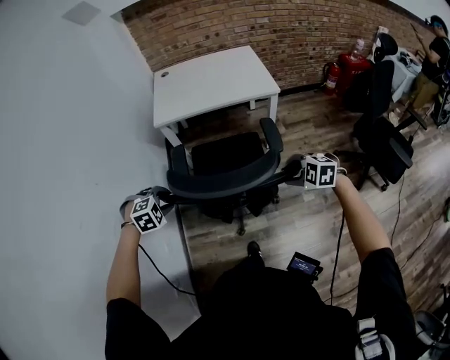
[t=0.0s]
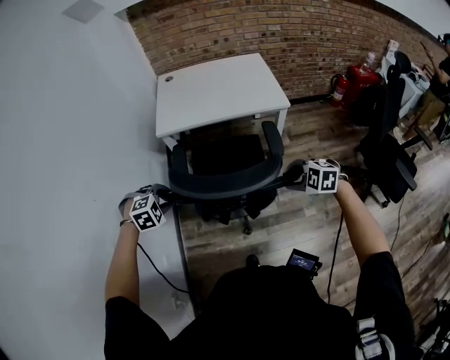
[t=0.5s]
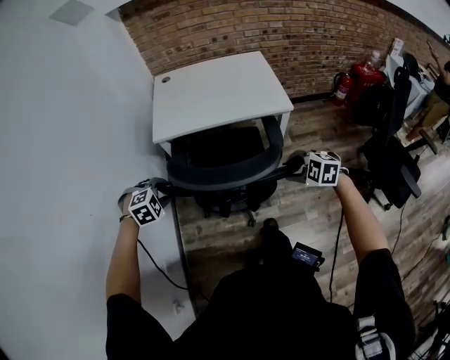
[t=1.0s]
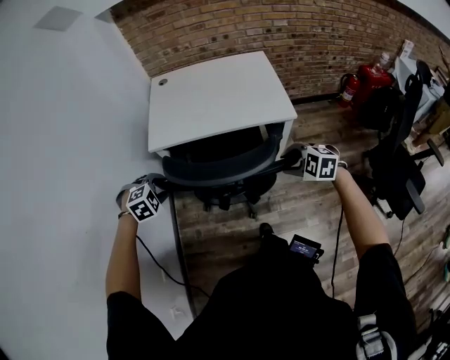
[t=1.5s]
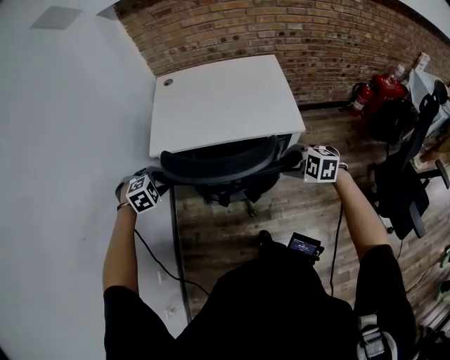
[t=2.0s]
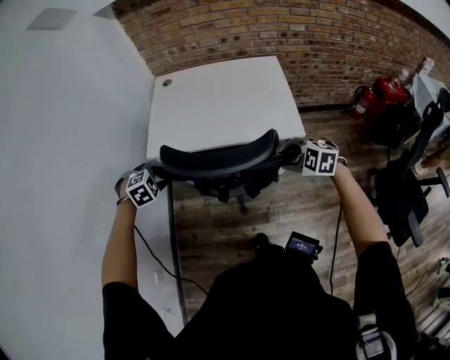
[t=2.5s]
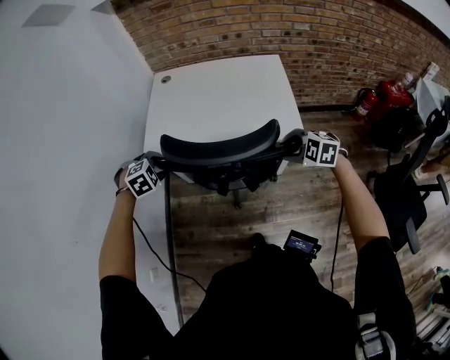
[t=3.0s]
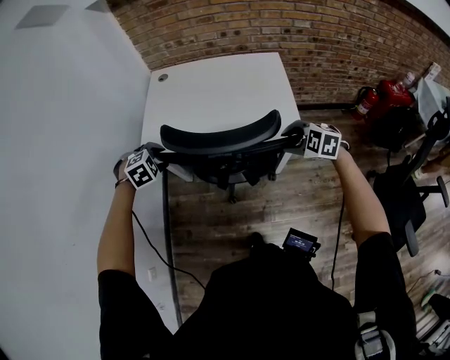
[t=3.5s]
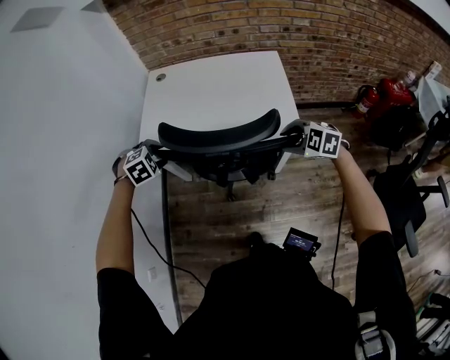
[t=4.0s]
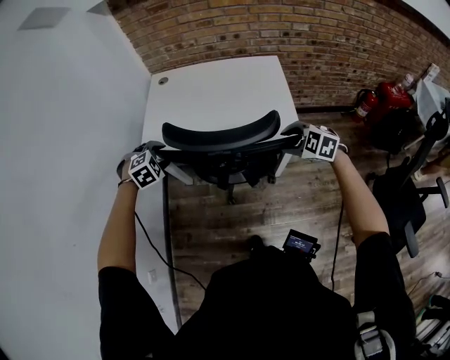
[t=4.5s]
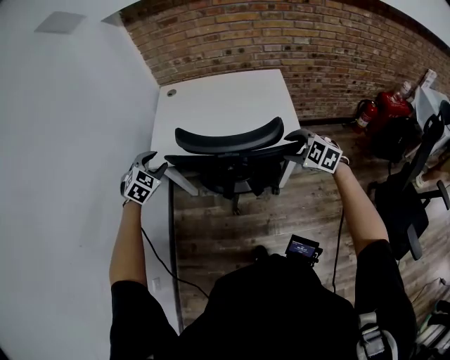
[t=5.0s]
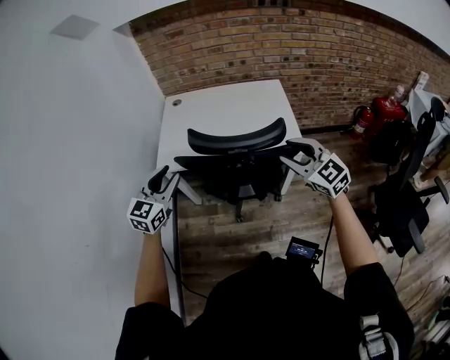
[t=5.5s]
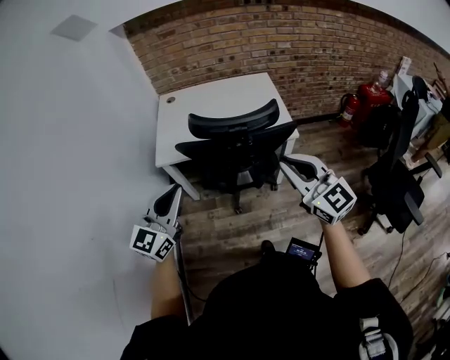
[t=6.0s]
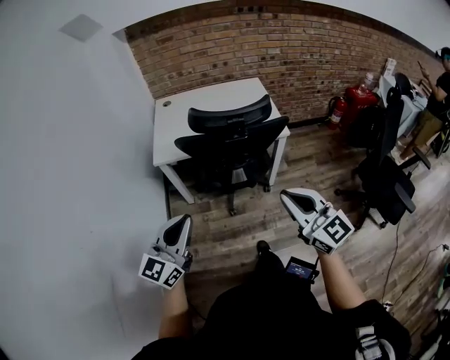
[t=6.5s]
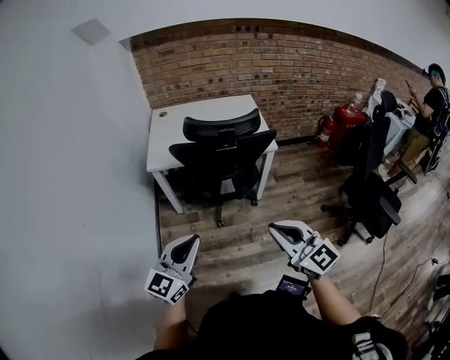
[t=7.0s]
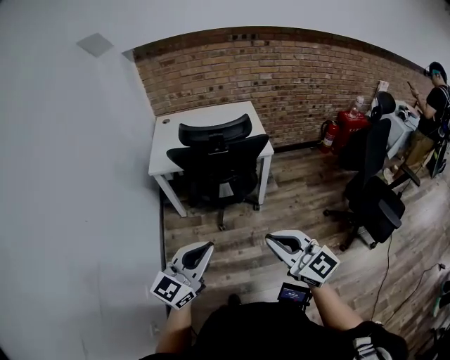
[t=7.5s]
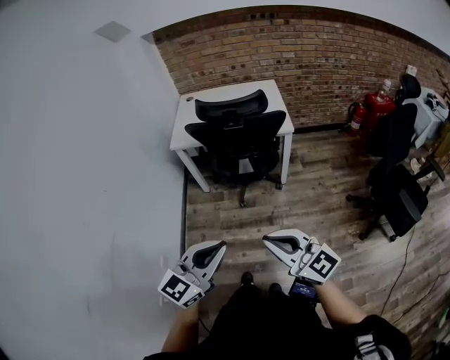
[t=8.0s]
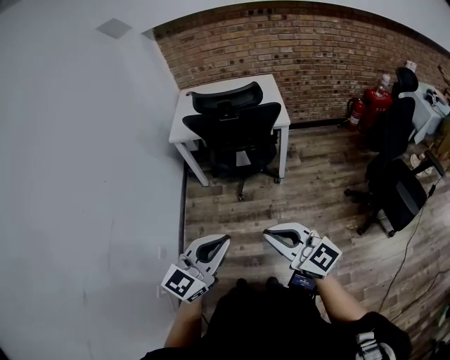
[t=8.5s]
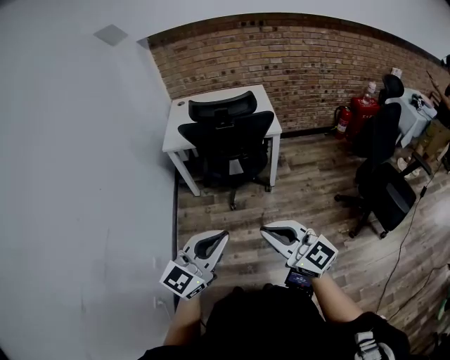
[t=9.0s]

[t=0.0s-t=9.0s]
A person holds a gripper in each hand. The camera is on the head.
t=0.0s to t=2.0s: The two grippers go approximately 35 cm forward.
t=2.0s to t=4.5s: Both grippers travel together forward and to the right, about 15 cm.
t=4.5s to t=7.0s: The two grippers travel together, backward, about 50 cm. The left gripper tips its fingers upward by roughly 70 degrees, and closes its fingers. The right gripper tilts its fingers roughly 50 degrees upward, and closes its fingers.
t=7.0s to t=9.0s: The left gripper shifts about 25 cm backward and to the right. Meanwhile the right gripper heads backward, covering approximately 15 cm.

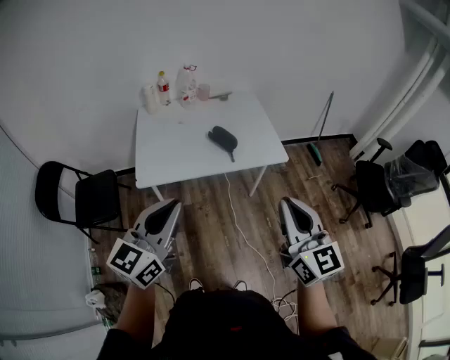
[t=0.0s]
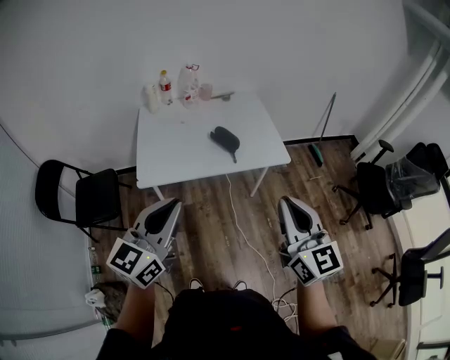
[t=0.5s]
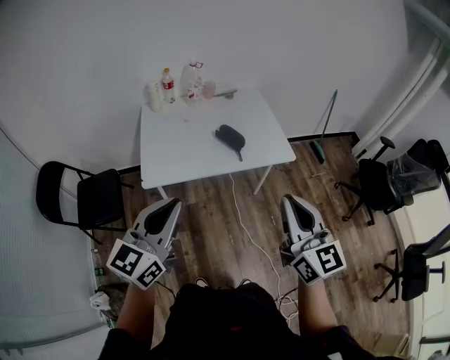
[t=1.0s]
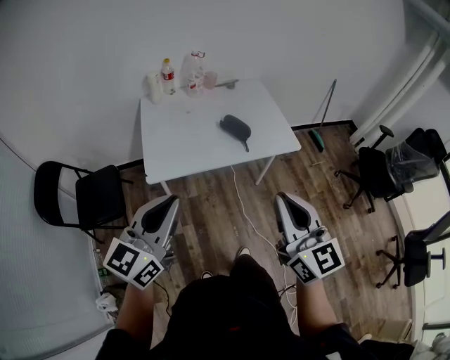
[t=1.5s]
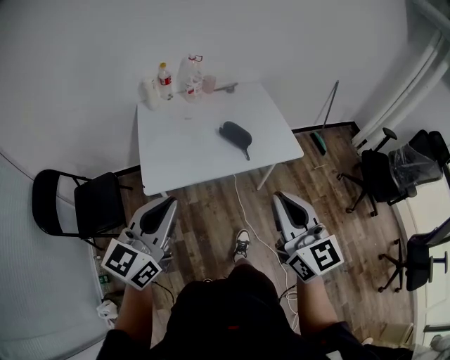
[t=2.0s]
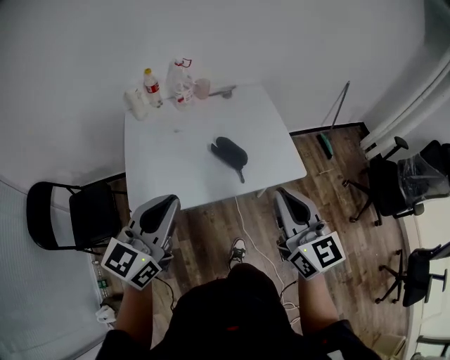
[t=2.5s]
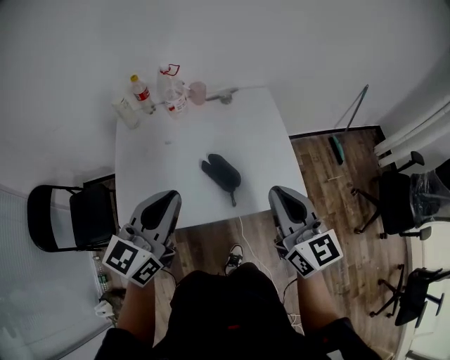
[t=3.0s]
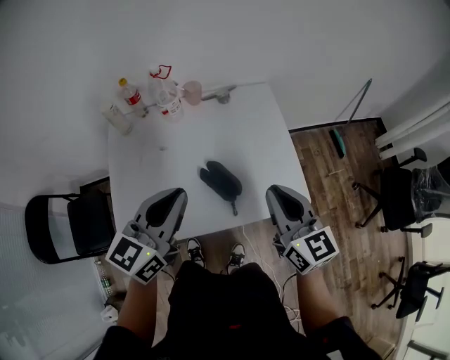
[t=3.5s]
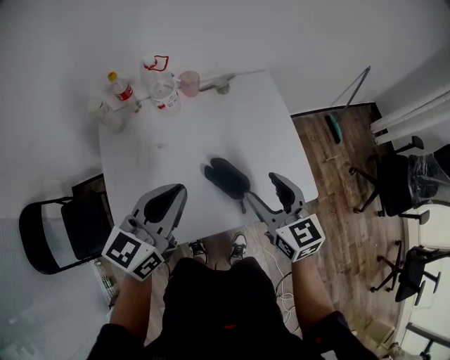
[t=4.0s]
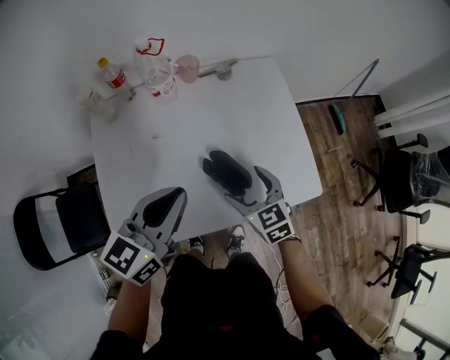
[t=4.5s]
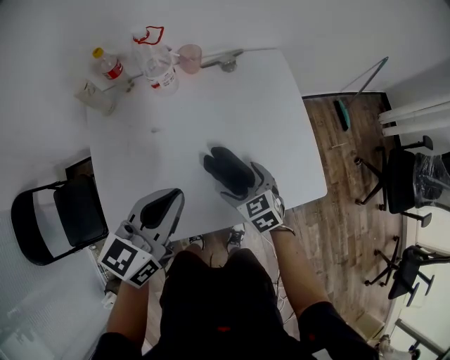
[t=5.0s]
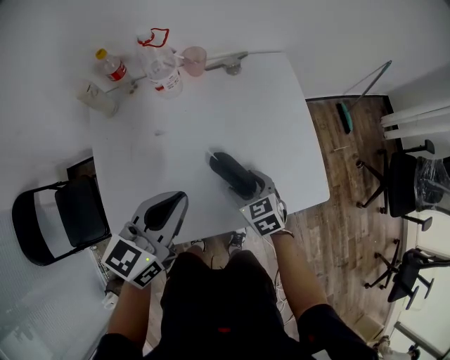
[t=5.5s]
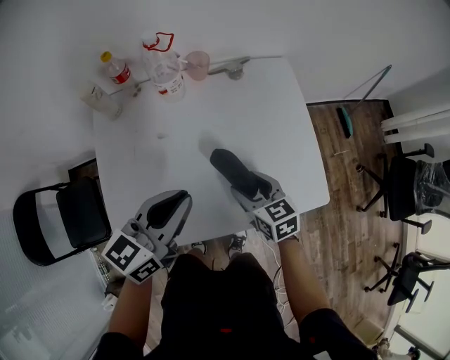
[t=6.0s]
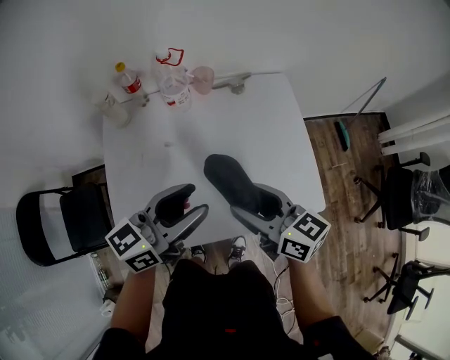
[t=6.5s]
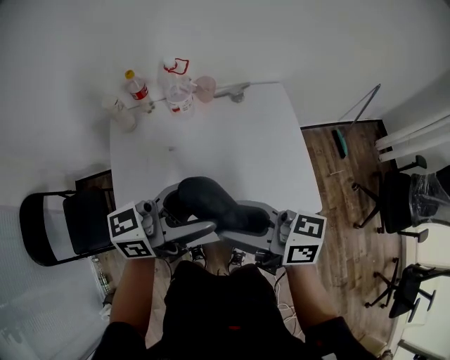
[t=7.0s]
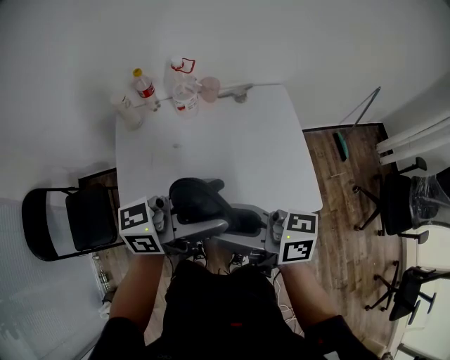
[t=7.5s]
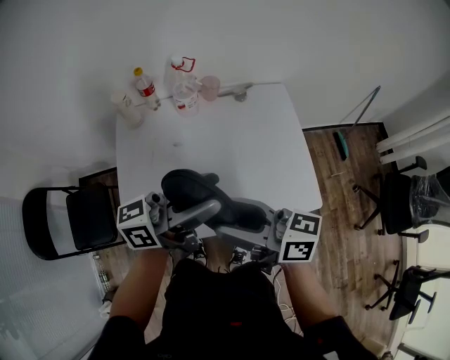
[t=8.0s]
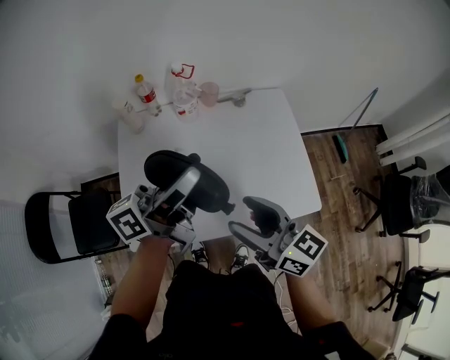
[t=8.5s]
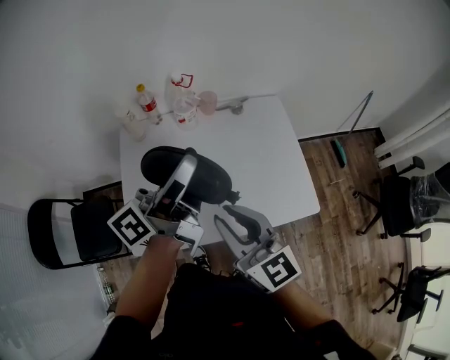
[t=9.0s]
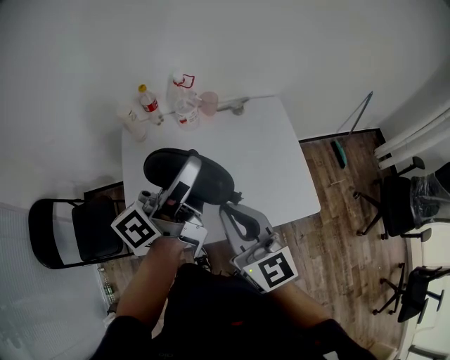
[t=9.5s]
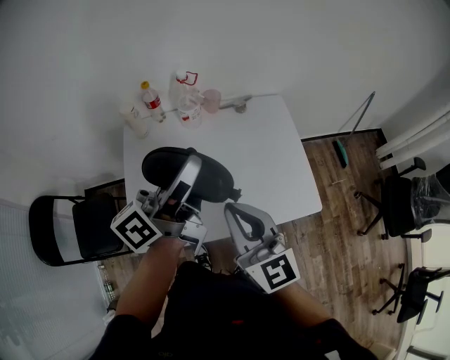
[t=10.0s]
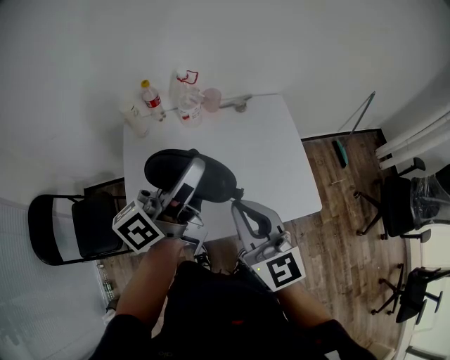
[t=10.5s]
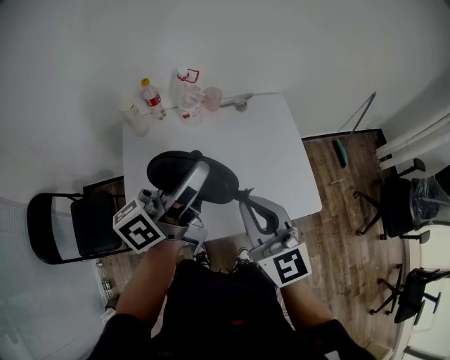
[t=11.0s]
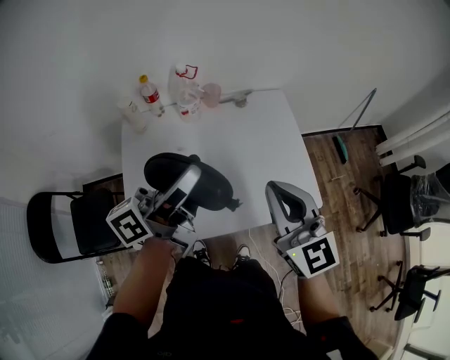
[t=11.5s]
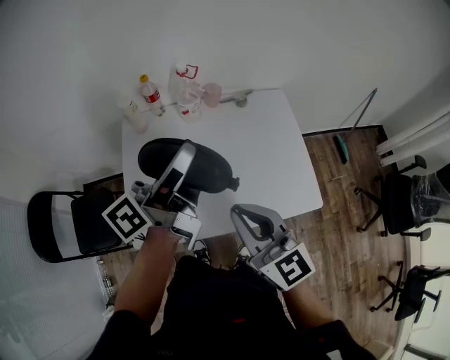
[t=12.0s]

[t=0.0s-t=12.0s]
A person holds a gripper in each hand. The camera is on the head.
t=0.0s to t=2.0s: The grippers both shift to the left and forward by roughly 15 cm.
t=2.0s to t=4.0s: Both grippers are carried forward, about 40 cm. The right gripper moves downward, some 15 cm, changes its angle by some 20 degrees, and opens up.
t=4.0s to t=6.0s: The right gripper moves downward, about 15 cm, rotates roughly 20 degrees, and opens, then closes again. The left gripper goes some 5 cm downward.
t=6.0s to t=8.0s: The right gripper shifts about 25 cm upward, and points its fingers some 40 degrees further upward, while the left gripper moves upward, approximately 15 cm, turns by approximately 40 degrees, and opens.
t=8.0s to t=10.0s: The right gripper turns by roughly 50 degrees, and closes its fingers. The left gripper goes roughly 10 cm upward and to the left, and changes its angle by roughly 30 degrees.
t=10.0s to t=12.0s: The right gripper travels to the right and back again, some 10 cm each way.

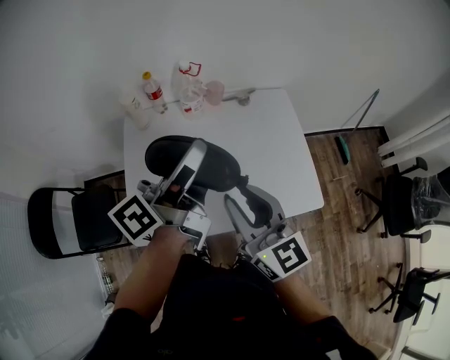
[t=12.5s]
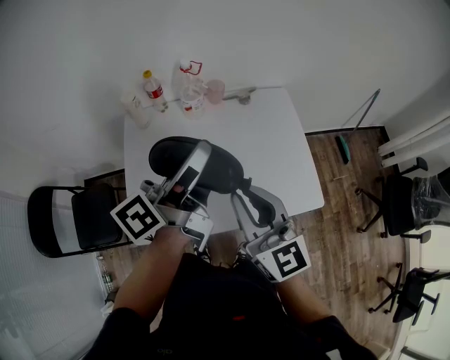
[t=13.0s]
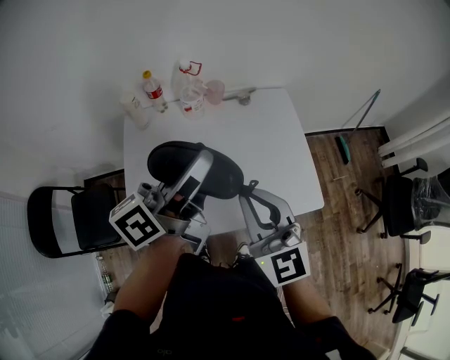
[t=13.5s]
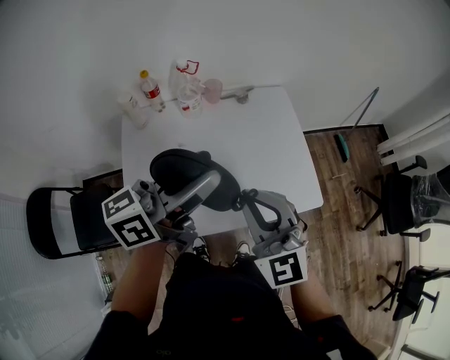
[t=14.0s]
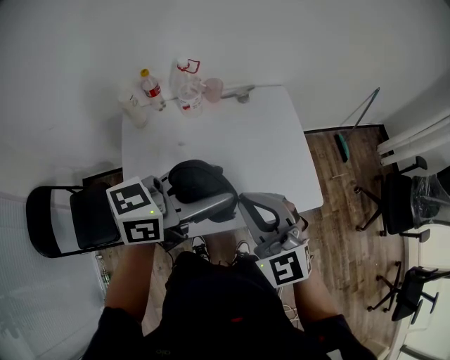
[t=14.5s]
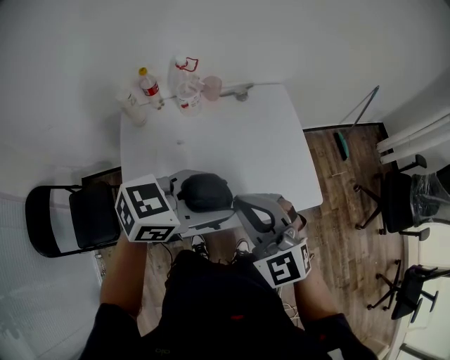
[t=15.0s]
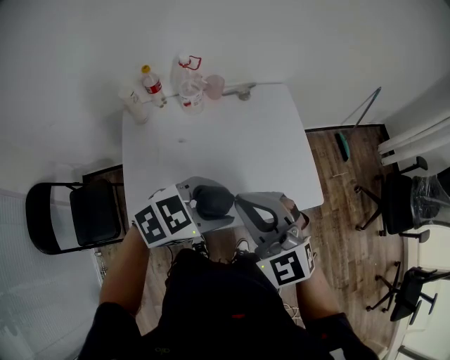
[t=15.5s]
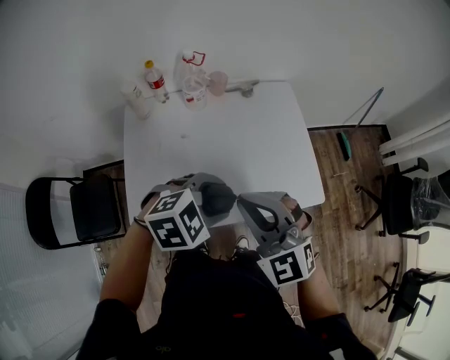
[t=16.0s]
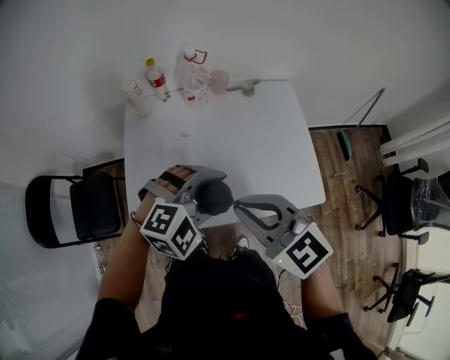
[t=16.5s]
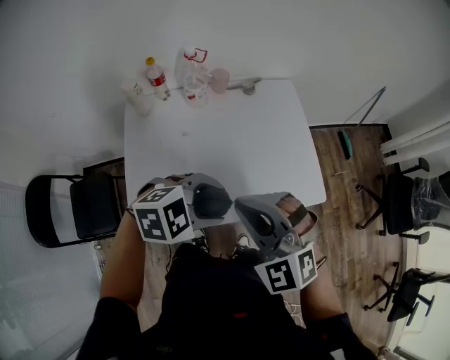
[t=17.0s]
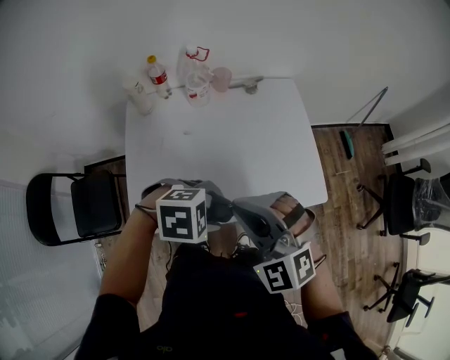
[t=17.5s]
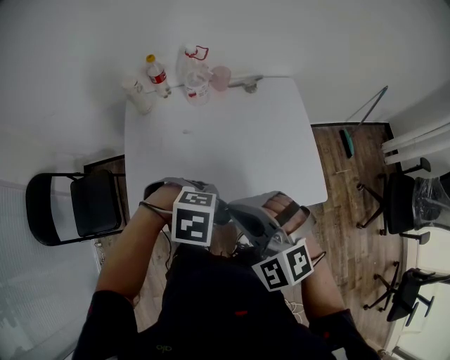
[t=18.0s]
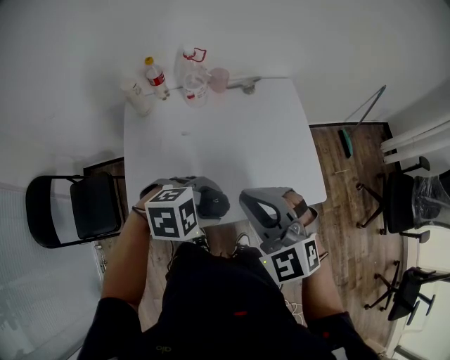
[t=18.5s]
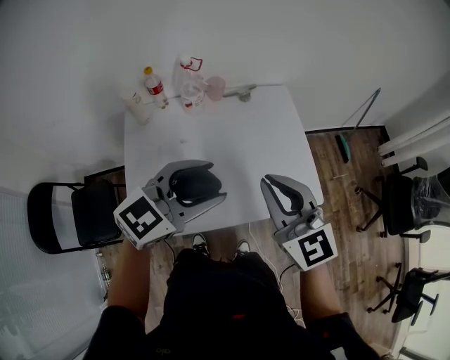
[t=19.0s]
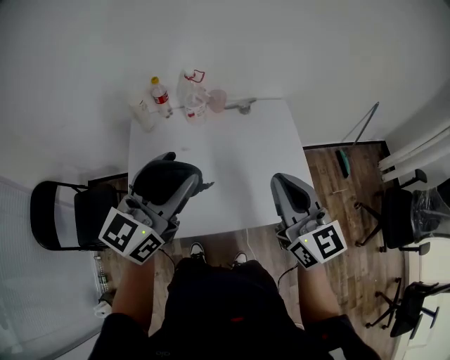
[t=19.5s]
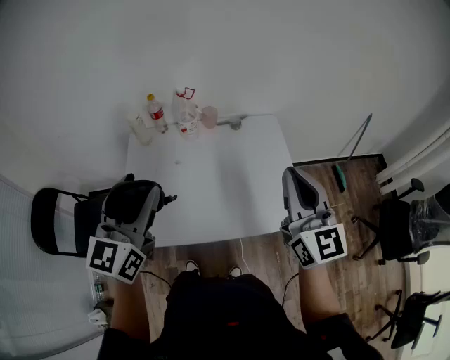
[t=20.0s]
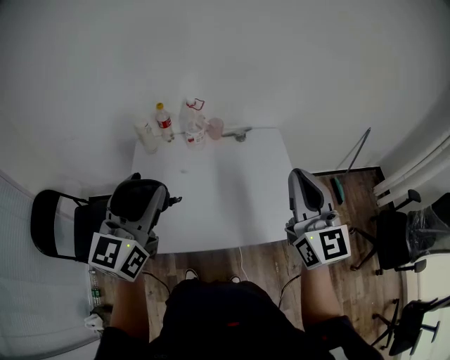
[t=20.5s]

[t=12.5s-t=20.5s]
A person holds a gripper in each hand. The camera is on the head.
t=12.5s to t=14.5s: The right gripper turns by roughly 40 degrees; the left gripper is displaced to the right and backward by approximately 10 cm, and changes its angle by approximately 50 degrees.
t=14.5s to t=16.5s: The right gripper turns by some 30 degrees. The left gripper heads downward, covering some 10 cm, and rolls clockwise, seen from behind, by roughly 60 degrees.
t=16.5s to t=18.5s: The left gripper changes its angle by roughly 30 degrees. The right gripper changes its angle by approximately 30 degrees.
t=18.5s to t=20.5s: The right gripper moves approximately 20 cm, and tilts its fingers approximately 30 degrees upward. The left gripper moves upward, roughly 25 cm, and angles its fingers upward, by approximately 60 degrees.
